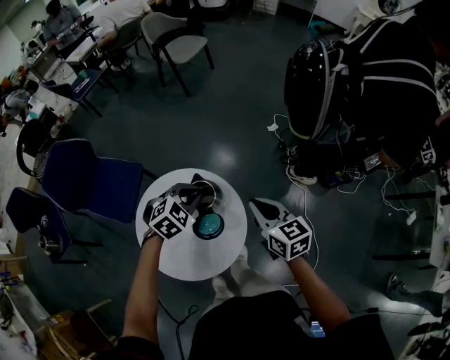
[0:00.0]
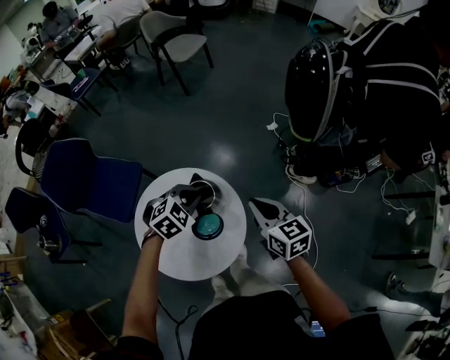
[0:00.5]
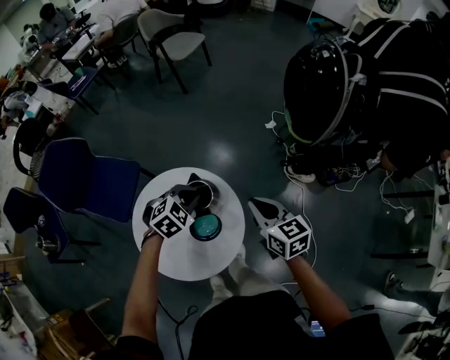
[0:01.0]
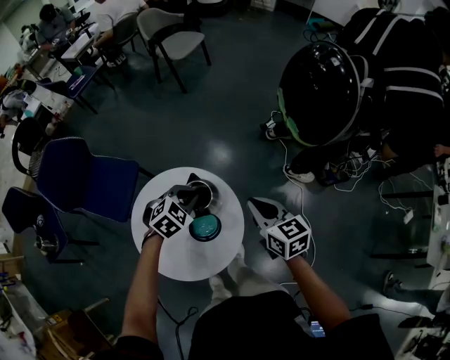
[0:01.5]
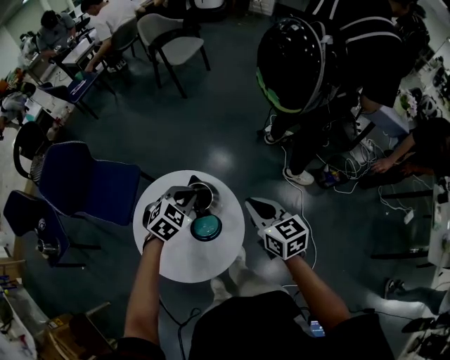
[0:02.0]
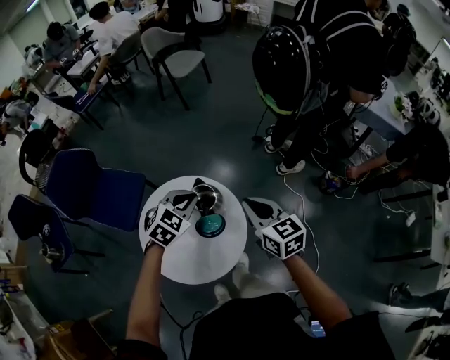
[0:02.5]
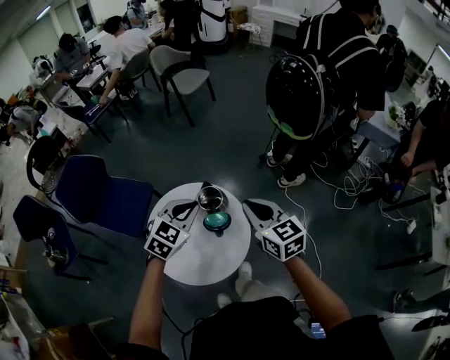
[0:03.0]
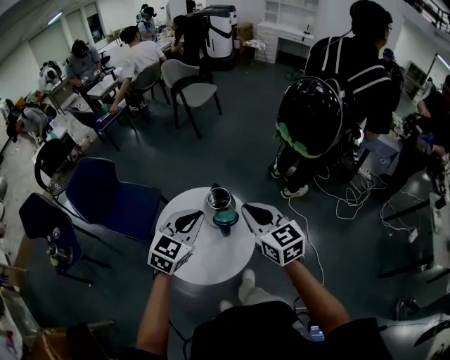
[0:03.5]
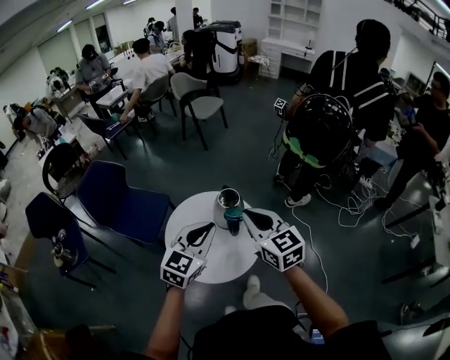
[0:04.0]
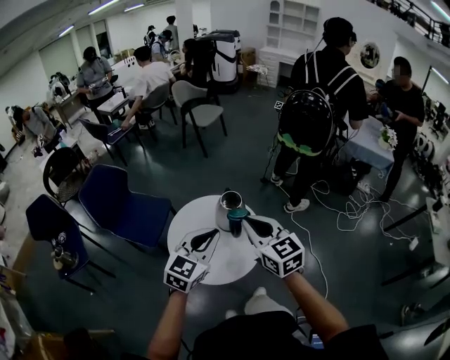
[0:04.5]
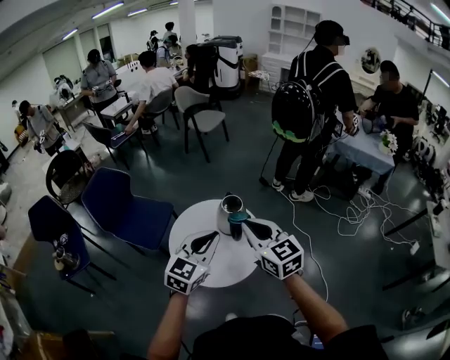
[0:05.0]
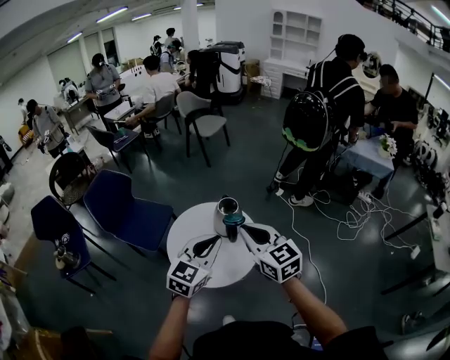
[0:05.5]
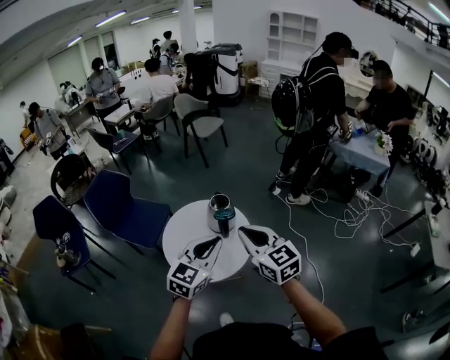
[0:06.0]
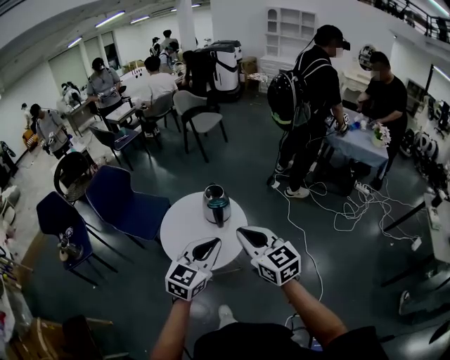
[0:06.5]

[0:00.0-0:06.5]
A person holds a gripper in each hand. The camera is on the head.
0:00.0 to 0:02.0: The grippers make only small movements.
0:02.0 to 0:04.5: The right gripper shifts approximately 35 cm backward, upward and to the left, and changes its angle by roughly 20 degrees, while the left gripper shifts some 40 cm backward and upward, and tips its fingers upward by roughly 30 degrees.
0:04.5 to 0:06.5: The grippers both shift backward and to the right by approximately 20 cm.

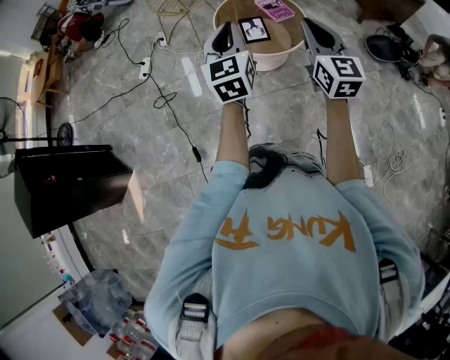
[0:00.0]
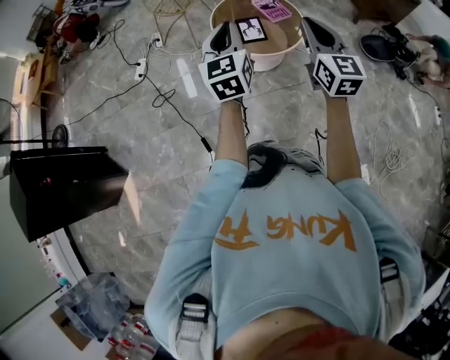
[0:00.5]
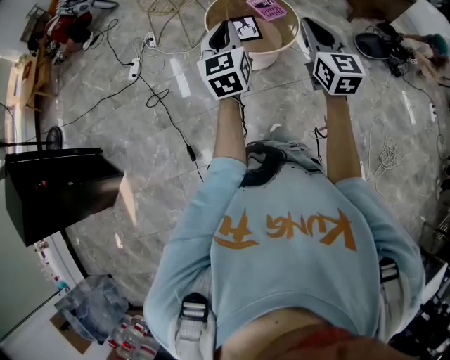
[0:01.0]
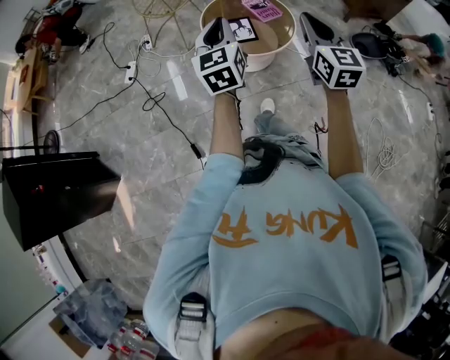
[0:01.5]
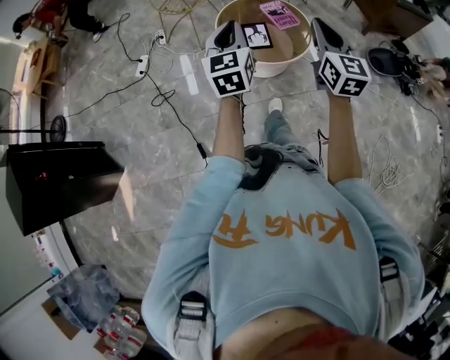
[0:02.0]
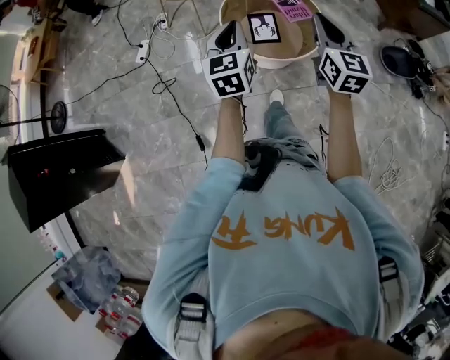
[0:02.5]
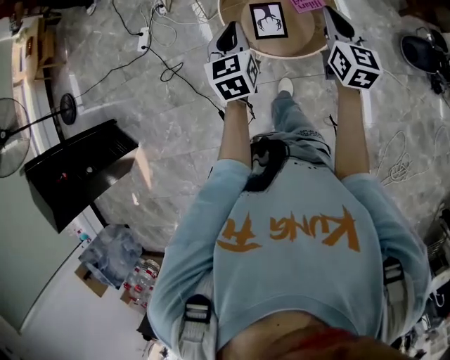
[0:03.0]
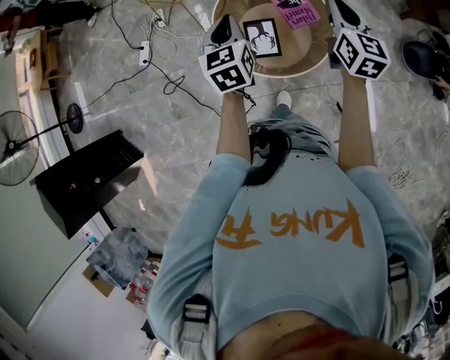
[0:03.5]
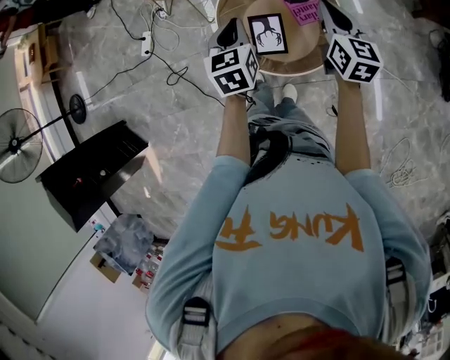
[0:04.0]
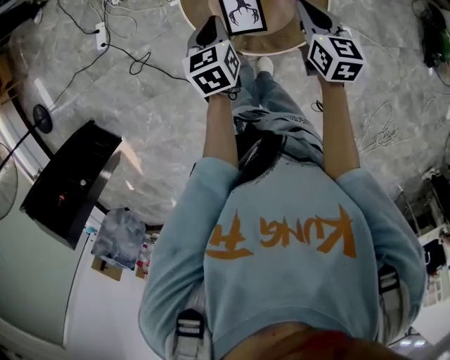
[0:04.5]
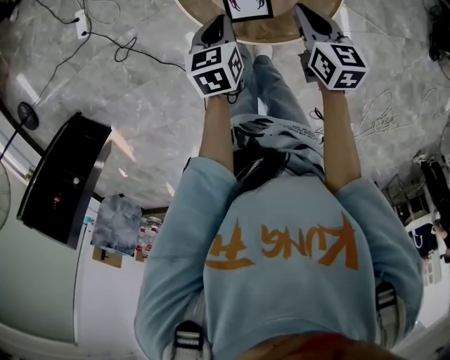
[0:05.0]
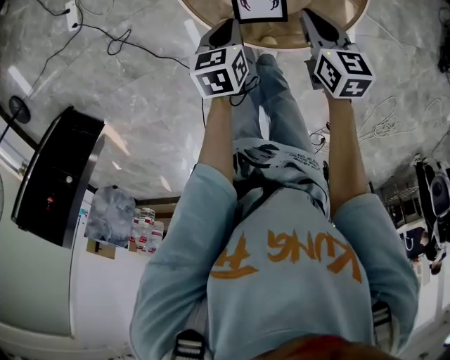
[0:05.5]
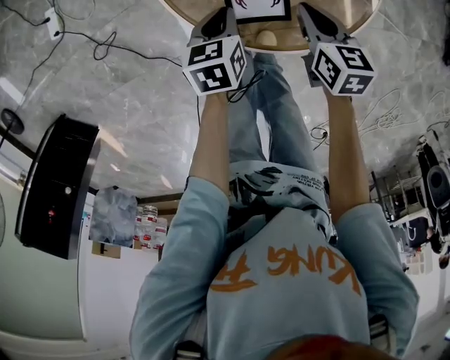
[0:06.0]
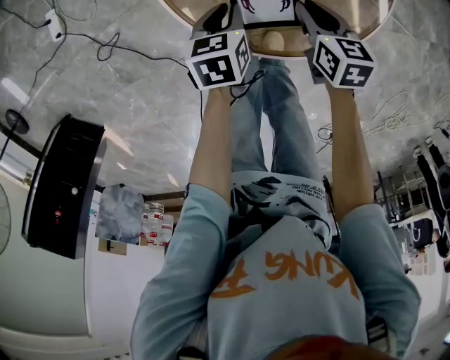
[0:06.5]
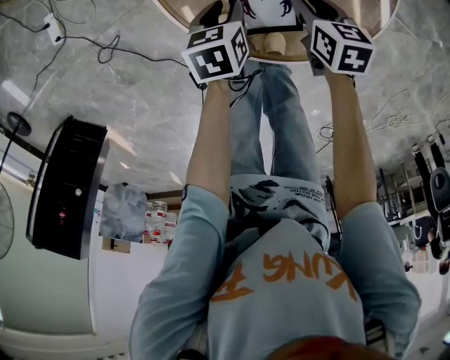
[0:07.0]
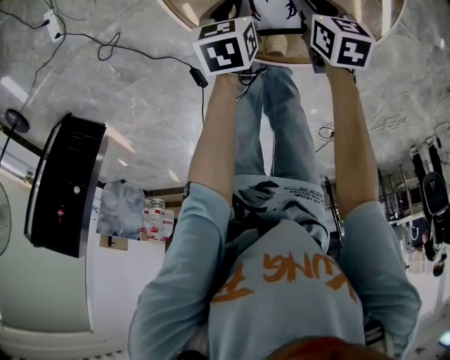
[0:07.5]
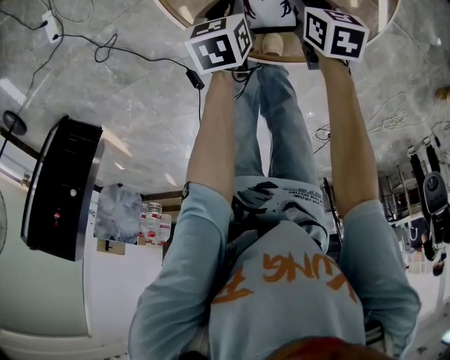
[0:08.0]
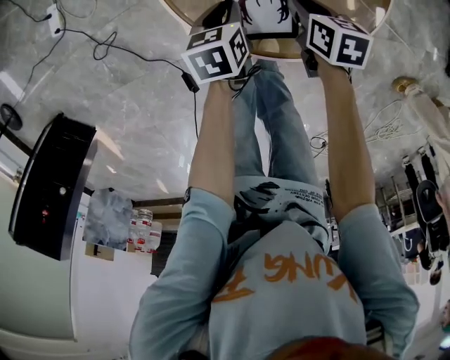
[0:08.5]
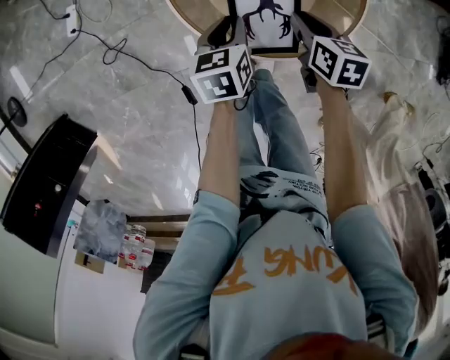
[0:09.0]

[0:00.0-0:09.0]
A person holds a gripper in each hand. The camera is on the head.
0:00.0 to 0:02.0: Both grippers travel together forward, about 10 cm.
0:02.0 to 0:04.5: The pair of grippers is taken forward, some 40 cm. Both grippers travel together downward, some 30 cm. The right gripper rotates about 30 degrees, while the left gripper tips its fingers downward by some 40 degrees.
0:04.5 to 0:07.0: The grippers both shift downward by about 35 cm. The right gripper turns by some 30 degrees, and opens. Meanwhile the left gripper turns by about 30 degrees, and opens.
0:07.0 to 0:09.0: The right gripper goes approximately 10 cm upward, while the left gripper is displaced upward and backward by approximately 15 cm.

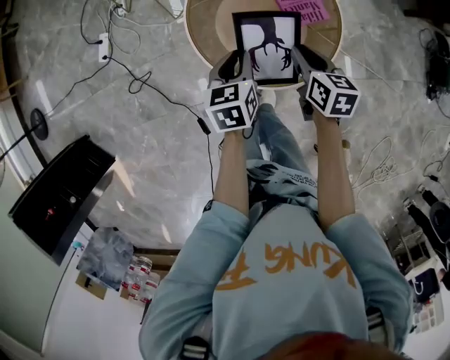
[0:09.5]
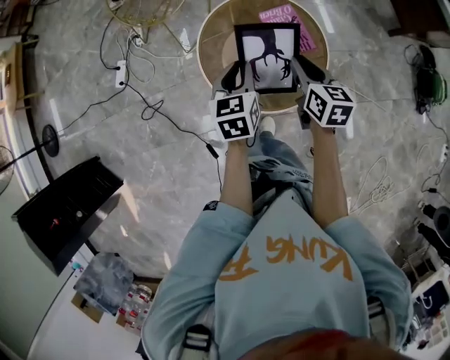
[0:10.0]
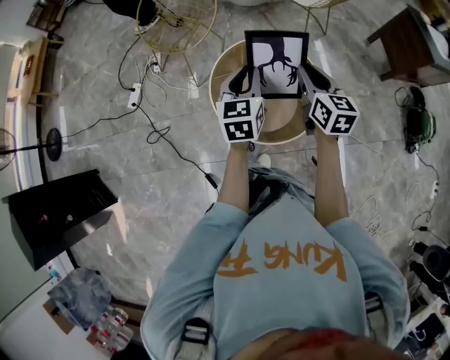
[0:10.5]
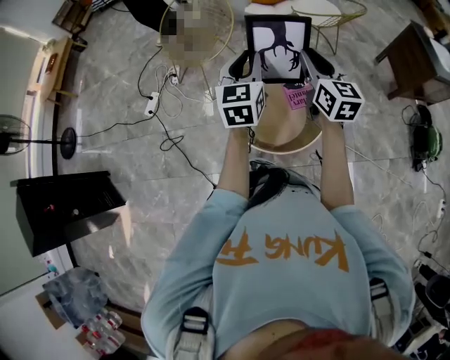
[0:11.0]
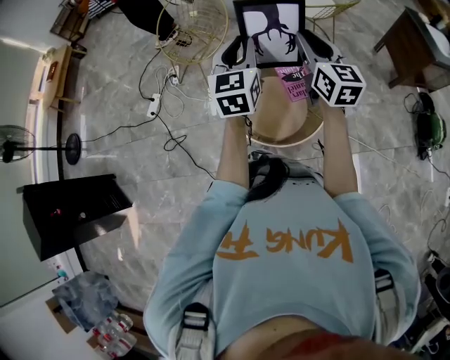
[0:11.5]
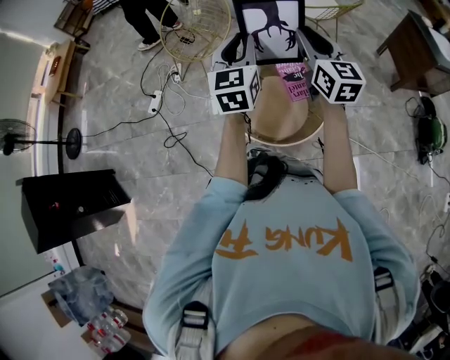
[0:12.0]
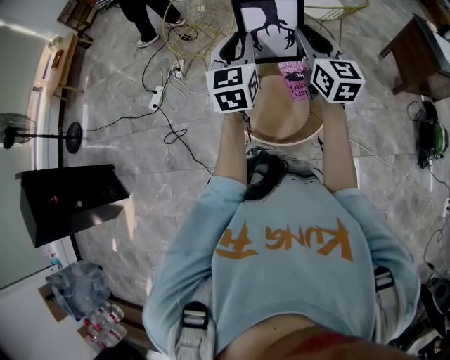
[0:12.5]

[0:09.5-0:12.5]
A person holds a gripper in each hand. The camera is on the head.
0:09.5 to 0:11.0: The two grippers go roughly 35 cm upward. The right gripper points its fingers approximately 30 degrees further upward, while the left gripper tilts its fingers about 30 degrees upward.
0:11.0 to 0:12.5: The grippers stay close to where they were, moving slightly.

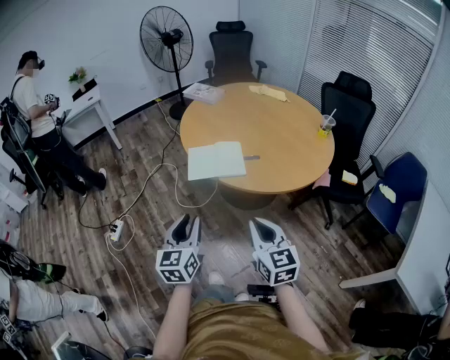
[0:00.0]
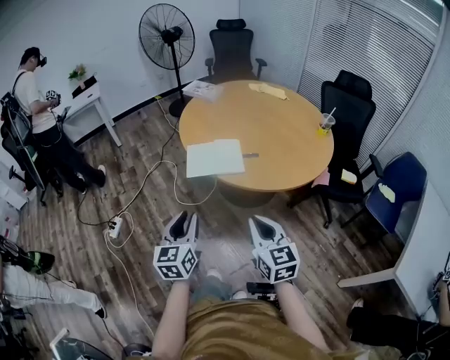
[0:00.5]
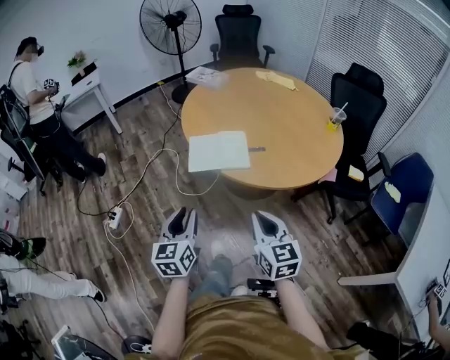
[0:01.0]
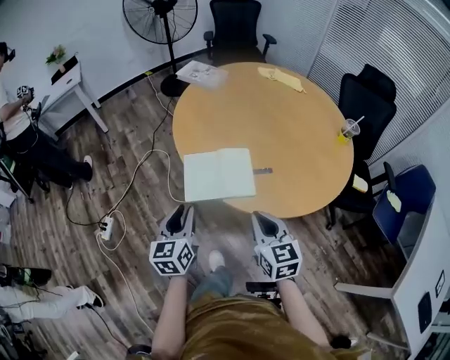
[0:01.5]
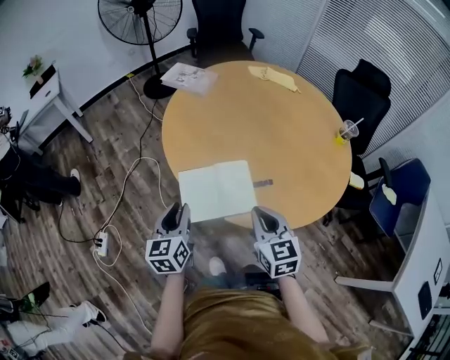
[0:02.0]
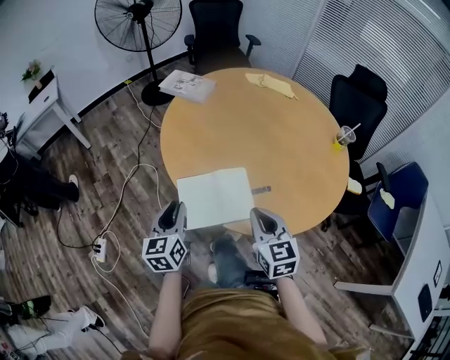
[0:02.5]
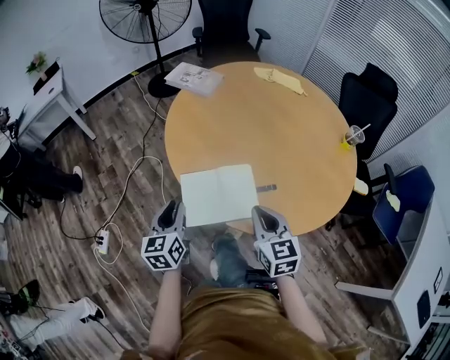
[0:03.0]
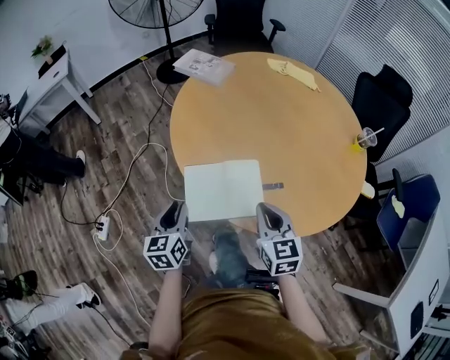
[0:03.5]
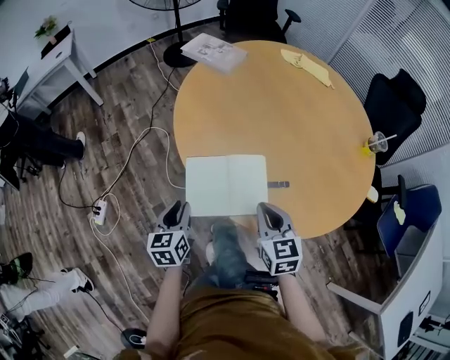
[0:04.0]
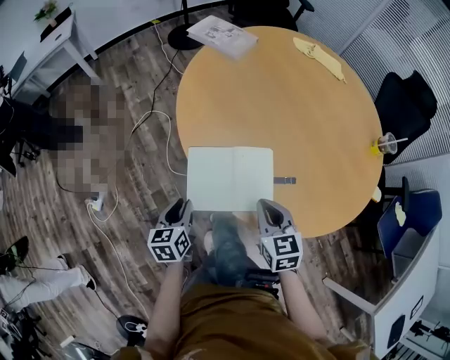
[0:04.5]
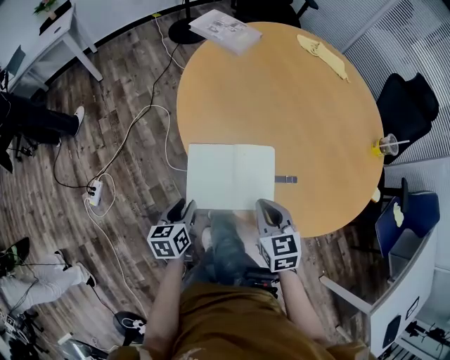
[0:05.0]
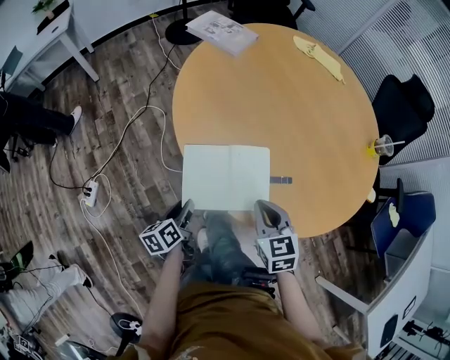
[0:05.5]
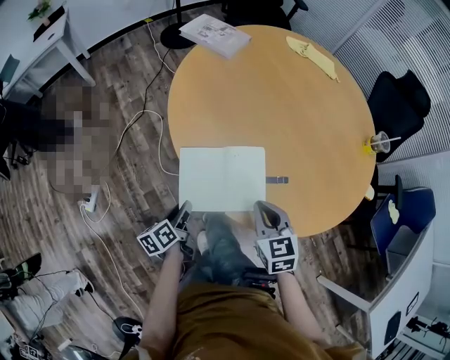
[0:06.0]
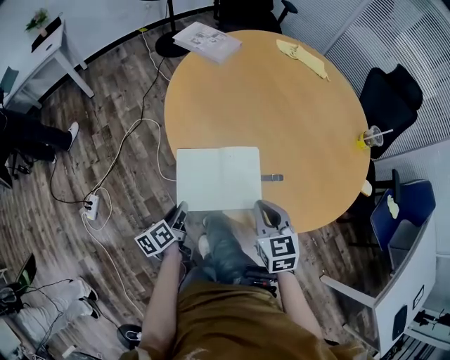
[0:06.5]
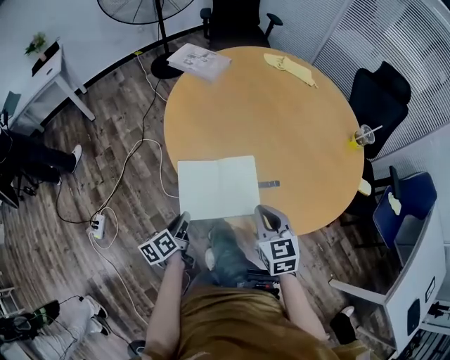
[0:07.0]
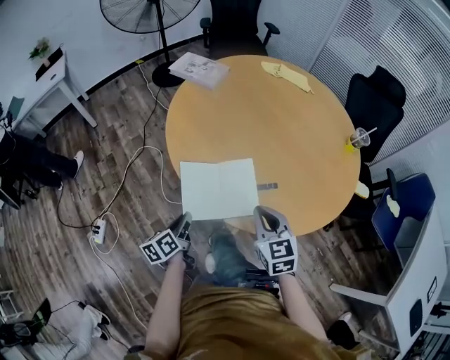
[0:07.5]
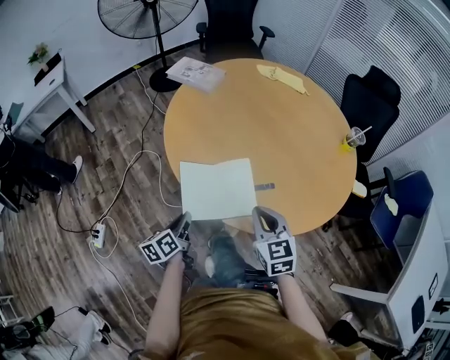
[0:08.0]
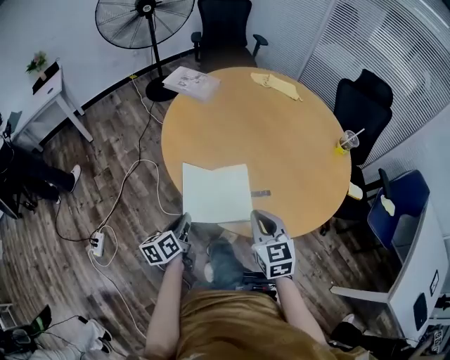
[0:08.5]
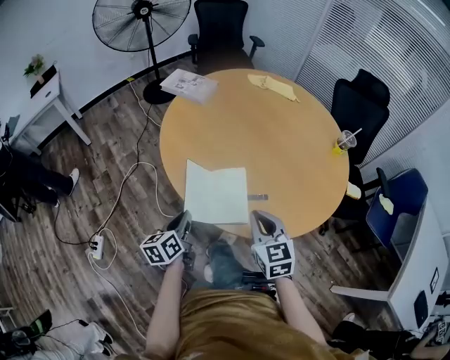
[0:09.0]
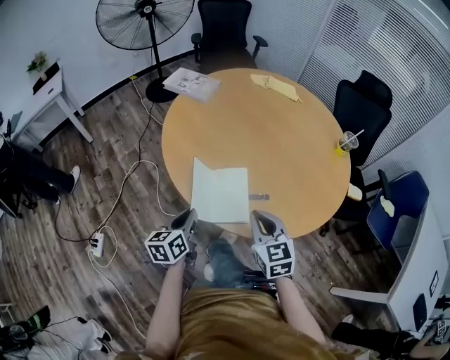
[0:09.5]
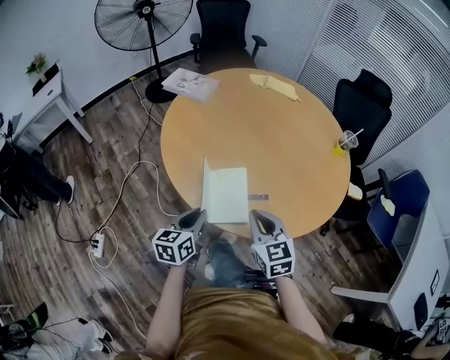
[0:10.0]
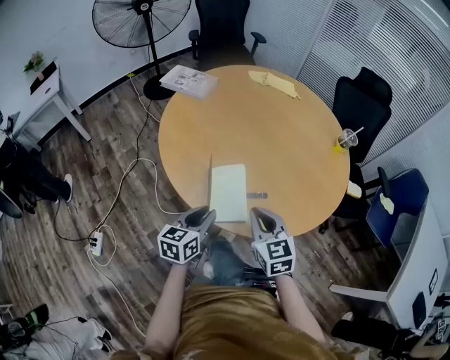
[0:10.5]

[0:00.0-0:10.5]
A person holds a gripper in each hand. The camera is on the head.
0:00.0 to 0:02.0: The grippers both shift forward by some 30 cm.
0:02.0 to 0:04.0: The left gripper heads downward, covering some 10 cm. Meanwhile the right gripper is displaced downward and forward by roughly 10 cm.
0:04.0 to 0:06.5: The left gripper moves downward, roughly 5 cm, and turns by about 40 degrees.
0:06.5 to 0:08.5: The grippers both shift upward by some 5 cm.
0:08.5 to 0:10.5: The left gripper travels to the right by approximately 10 cm, and changes its angle by approximately 30 degrees.
